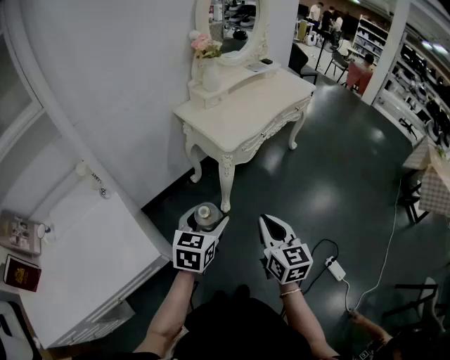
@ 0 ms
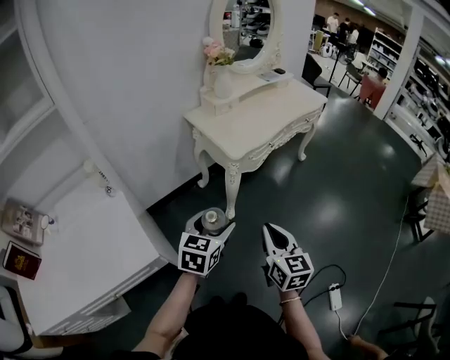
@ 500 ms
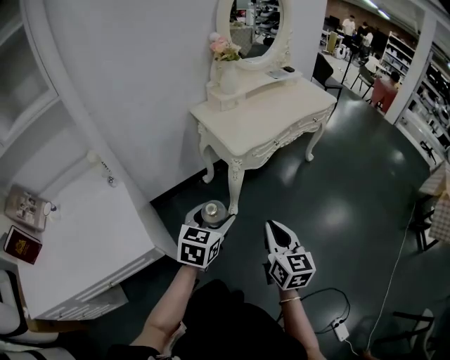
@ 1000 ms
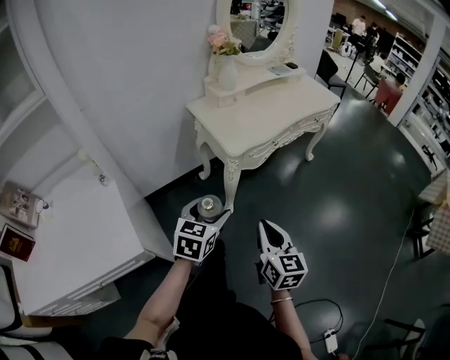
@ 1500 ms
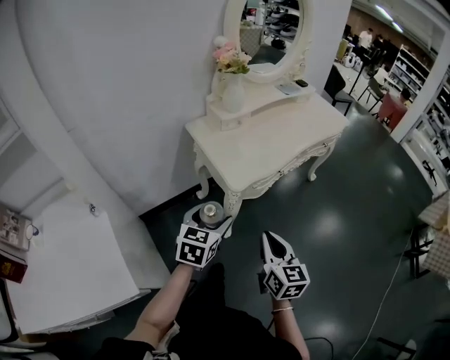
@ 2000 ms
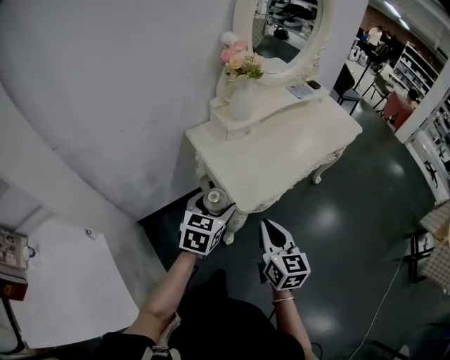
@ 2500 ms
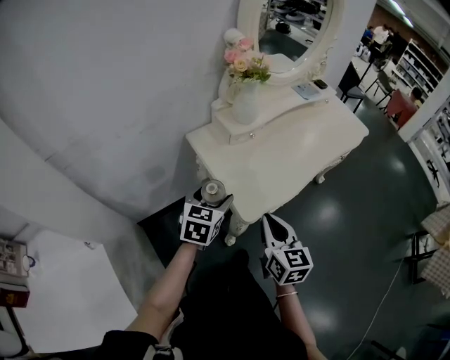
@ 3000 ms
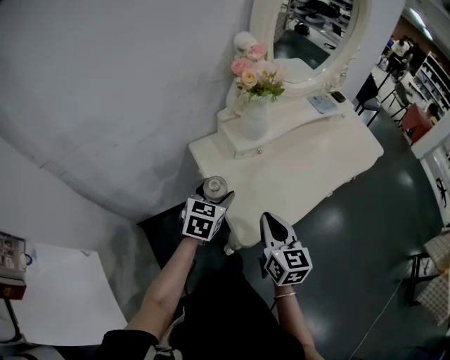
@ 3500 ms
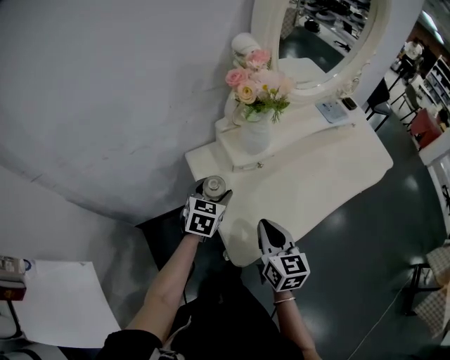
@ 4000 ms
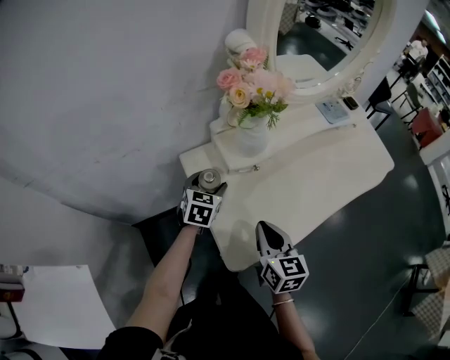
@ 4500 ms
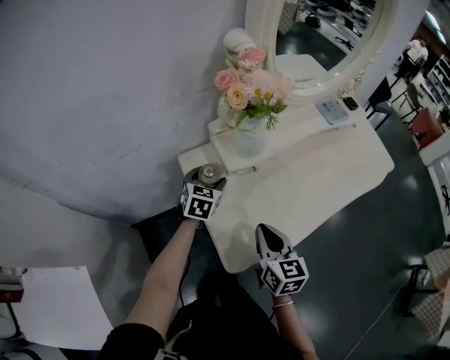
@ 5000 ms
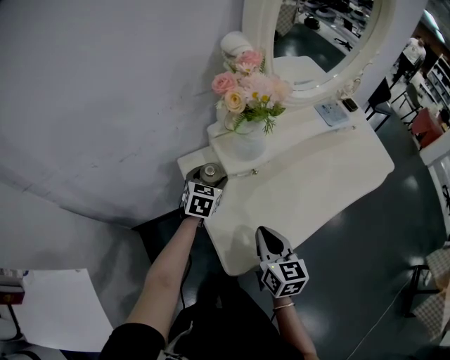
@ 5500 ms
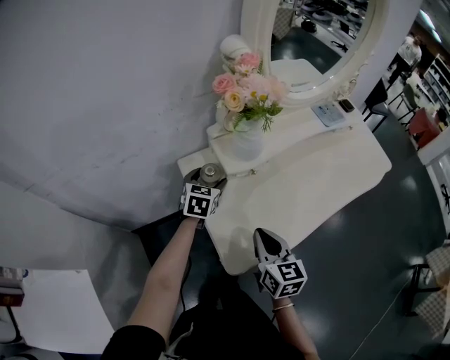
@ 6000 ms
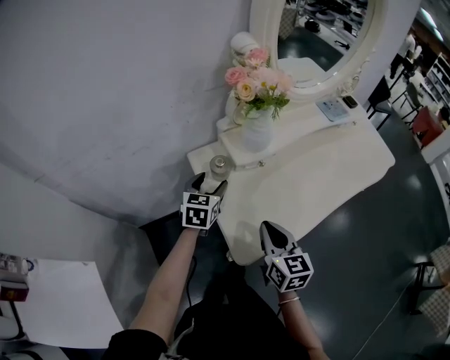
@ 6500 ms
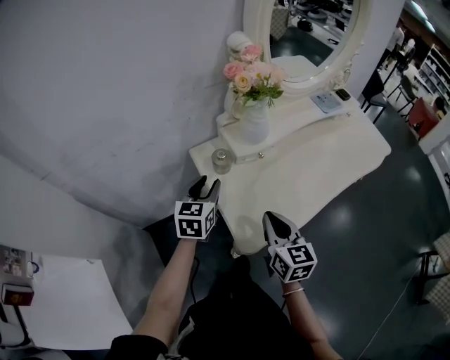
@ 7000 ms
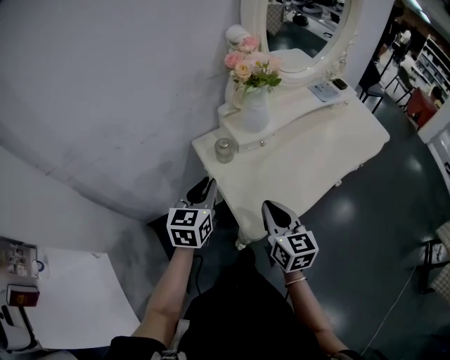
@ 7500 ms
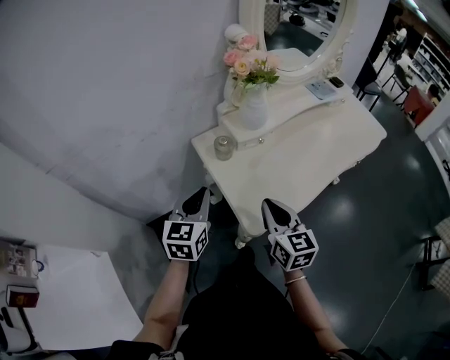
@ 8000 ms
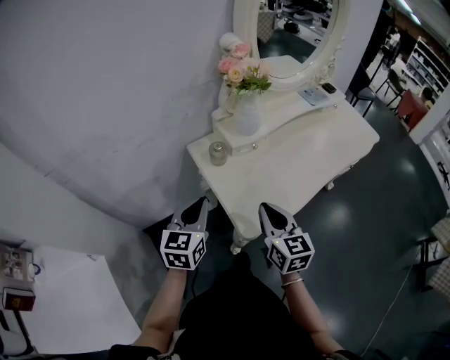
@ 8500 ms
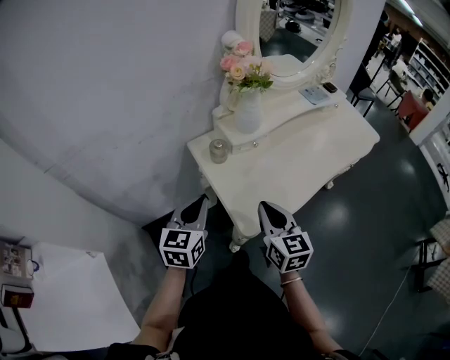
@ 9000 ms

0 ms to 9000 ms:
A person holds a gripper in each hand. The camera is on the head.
0 ms to 2000 ms: Both grippers travel together forward, about 20 cm.
2000 ms to 4500 ms: Both grippers move forward, roughly 40 cm.
4500 ms to 7000 ms: The left gripper shifts some 10 cm backward and upward, and closes its fingers.
7000 ms to 9000 ms: The left gripper is displaced backward by some 10 cm, and closes its fingers.

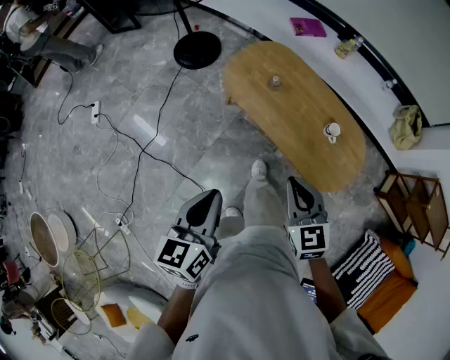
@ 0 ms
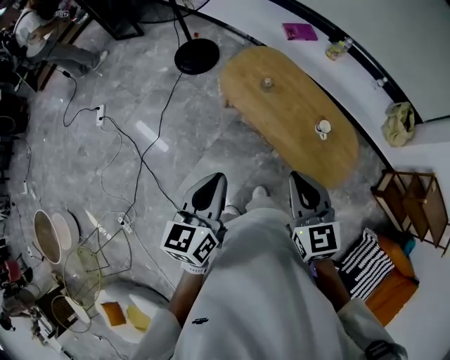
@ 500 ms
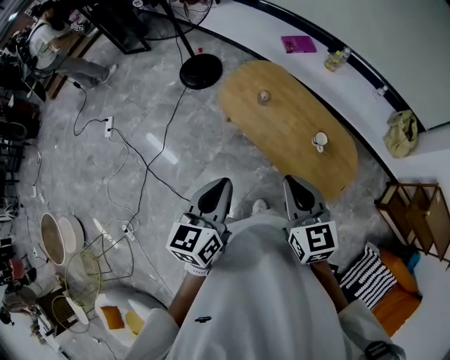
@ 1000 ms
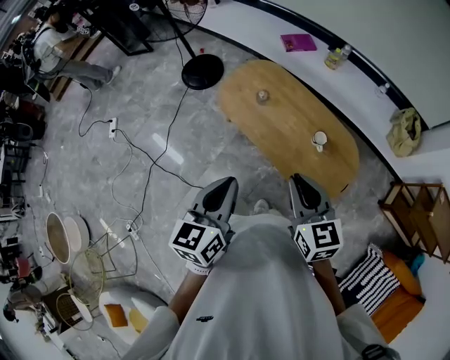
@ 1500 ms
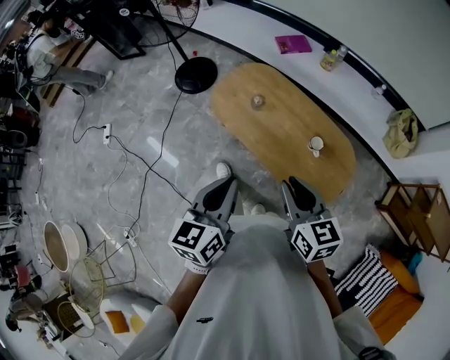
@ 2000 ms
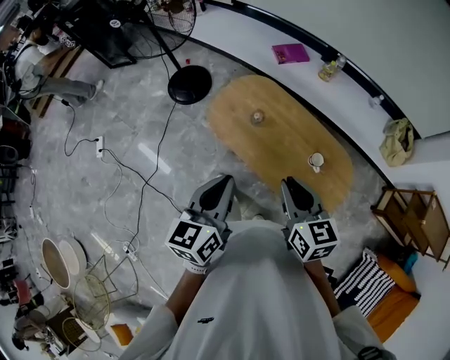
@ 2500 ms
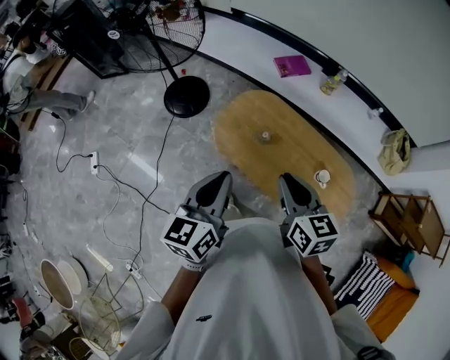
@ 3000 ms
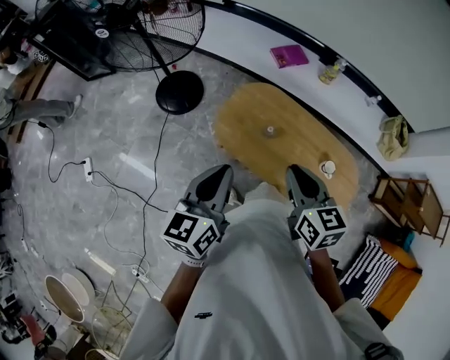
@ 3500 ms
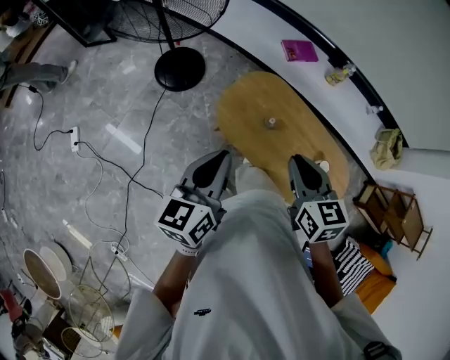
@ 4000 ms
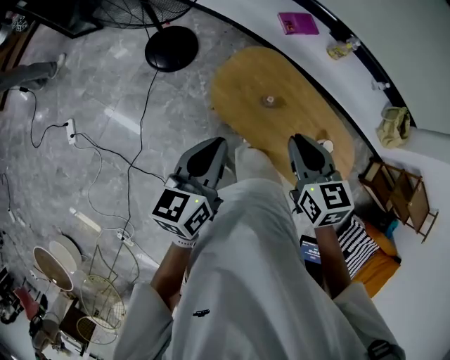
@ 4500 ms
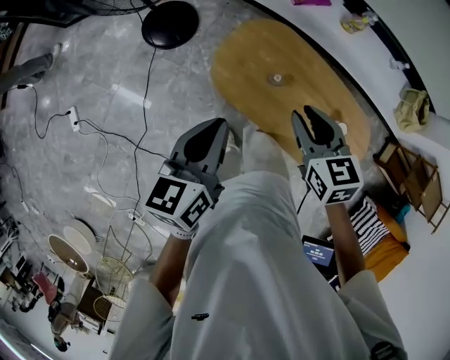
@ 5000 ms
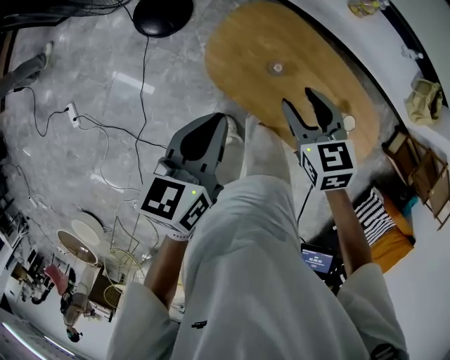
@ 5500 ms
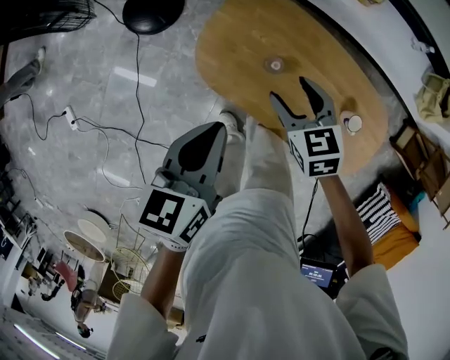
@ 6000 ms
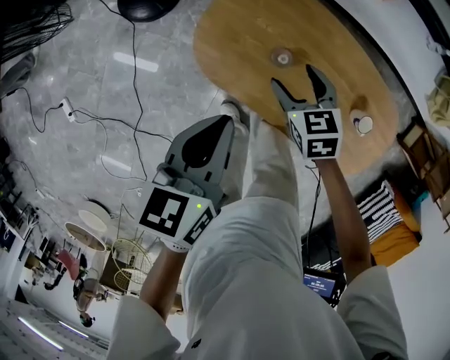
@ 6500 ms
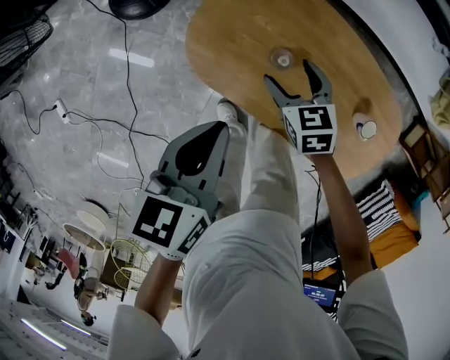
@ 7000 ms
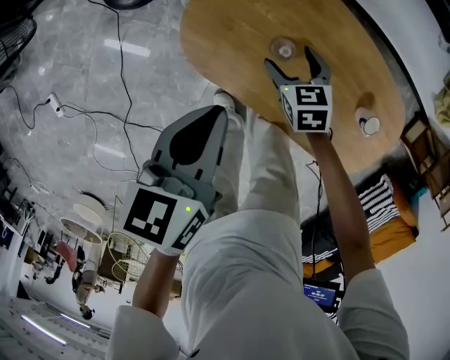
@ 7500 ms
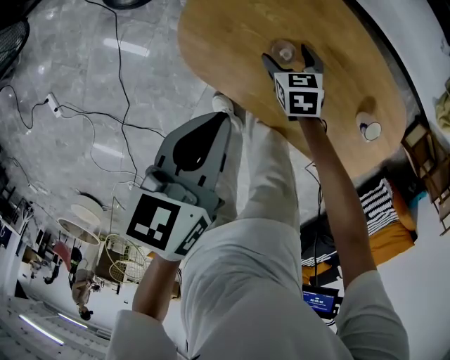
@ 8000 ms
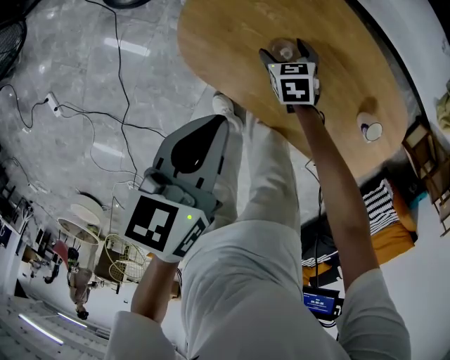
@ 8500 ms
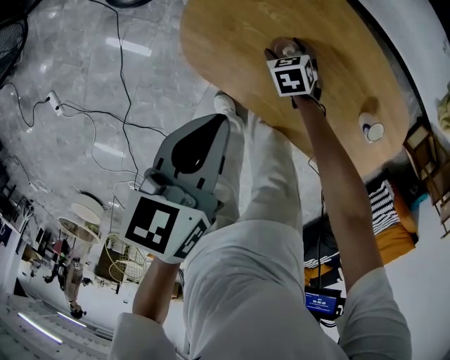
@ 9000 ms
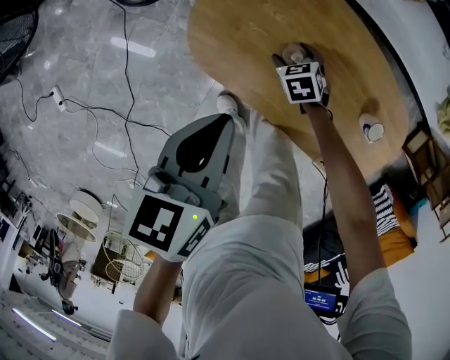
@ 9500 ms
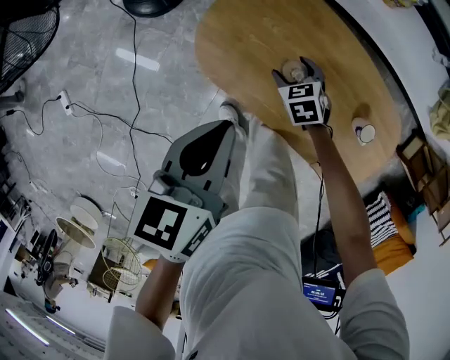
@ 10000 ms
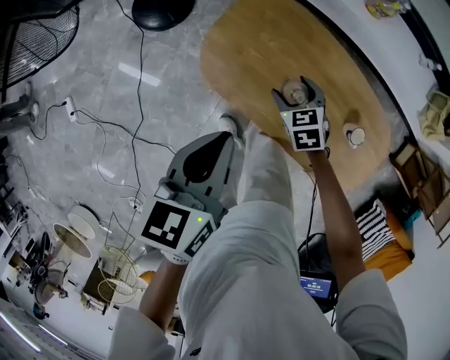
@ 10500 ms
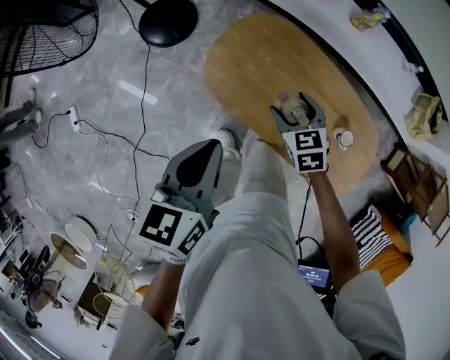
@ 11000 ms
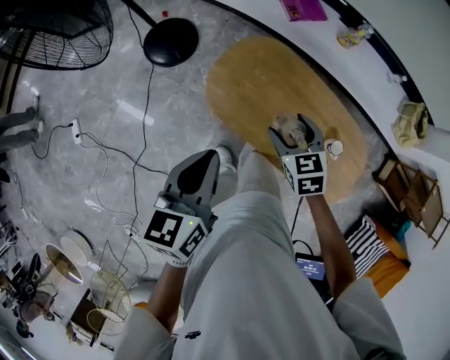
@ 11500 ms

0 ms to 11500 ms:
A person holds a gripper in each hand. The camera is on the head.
0 ms to 2000 ms: The right gripper goes approximately 10 cm to the right and upward, and changes its angle by roughly 20 degrees. Meanwhile the left gripper heads to the right, covering approximately 15 cm.
2000 ms to 4000 ms: Both grippers move forward and to the left, roughly 30 cm.
4000 ms to 6000 ms: The left gripper moves downward, forward and to the right, about 20 cm, and rotates roughly 30 degrees, while the right gripper is displaced downward and forward by roughly 25 cm, and opens.
6000 ms to 7500 ms: The right gripper shifts approximately 20 cm downward. The left gripper travels downward by roughly 10 cm.
7500 ms to 9500 ms: The right gripper moves downward, some 10 cm.
9500 ms to 11500 ms: The right gripper heads upward, covering approximately 35 cm, and changes its angle by approximately 20 degrees, while the left gripper heads upward and backward, covering some 20 cm.

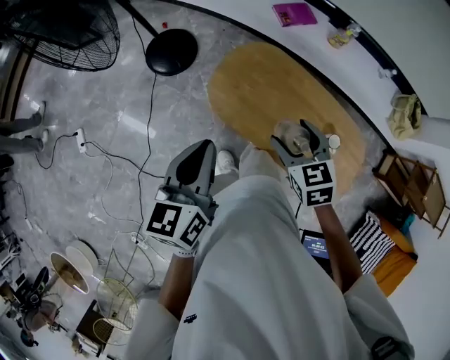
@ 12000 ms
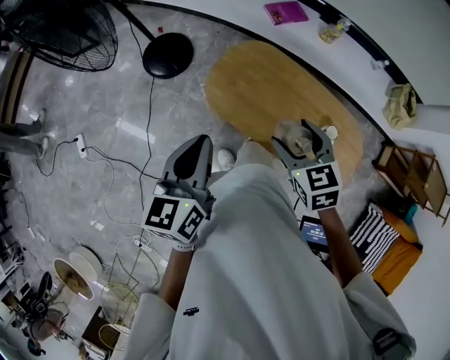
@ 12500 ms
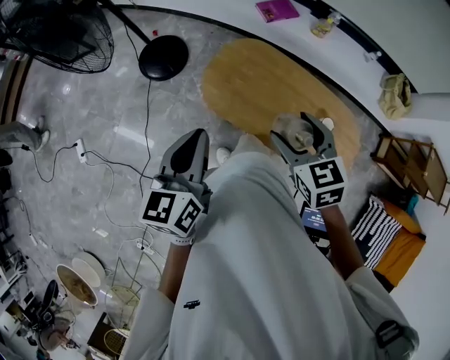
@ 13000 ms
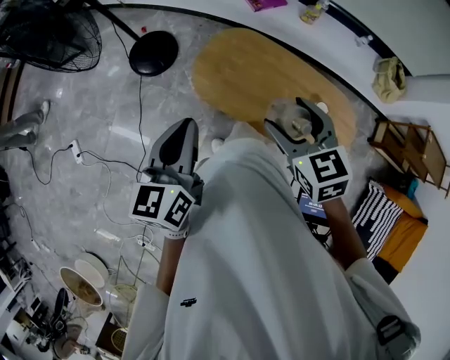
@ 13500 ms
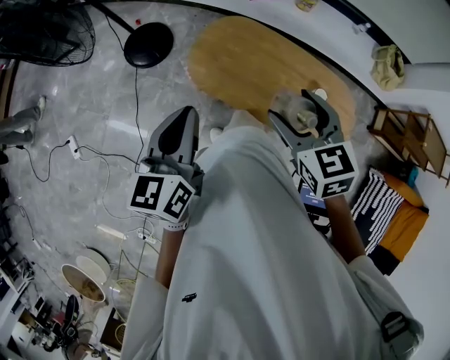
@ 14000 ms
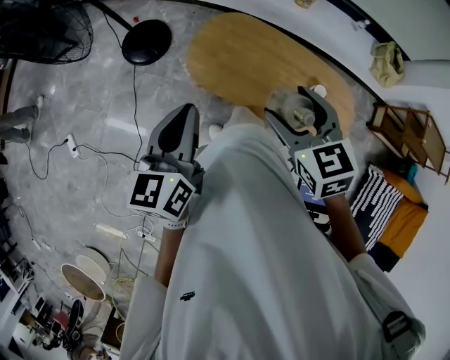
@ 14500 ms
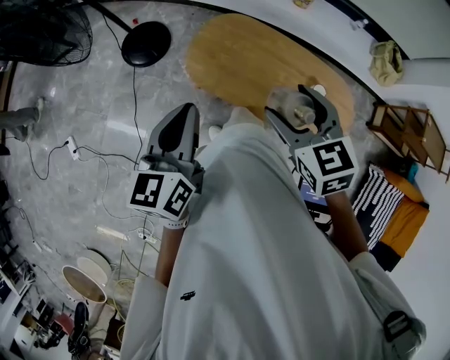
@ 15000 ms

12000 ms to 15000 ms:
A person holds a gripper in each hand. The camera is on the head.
12000 ms to 13500 ms: The left gripper changes place by approximately 5 cm. Meanwhile the right gripper goes roughly 10 cm upward and backward.
13500 ms to 15000 ms: The grippers stay close to where they were, moving slightly.

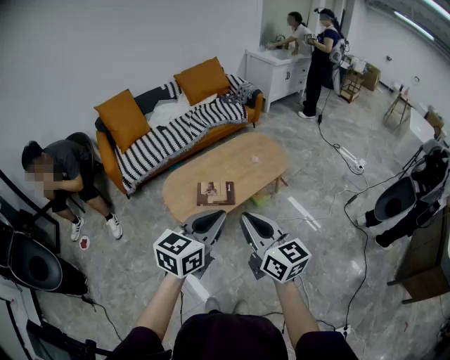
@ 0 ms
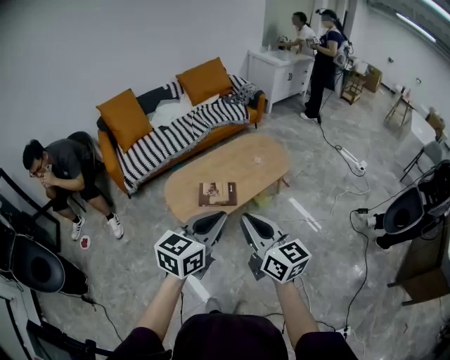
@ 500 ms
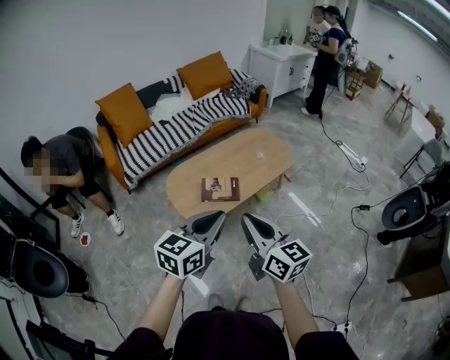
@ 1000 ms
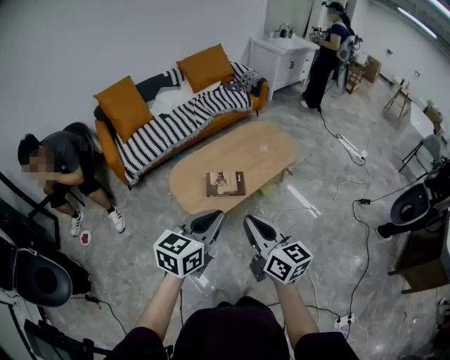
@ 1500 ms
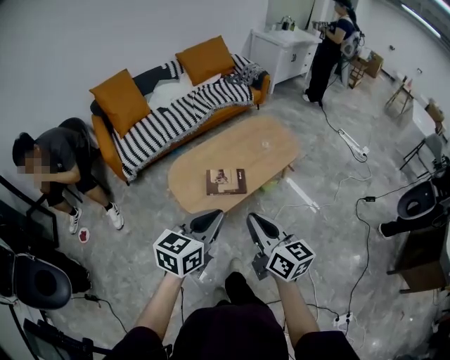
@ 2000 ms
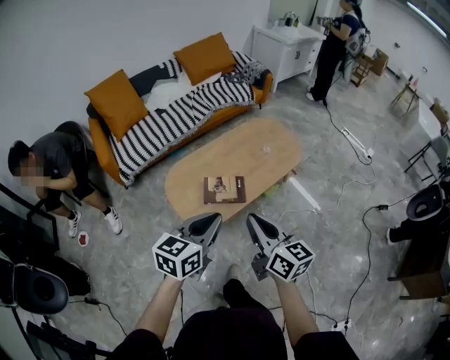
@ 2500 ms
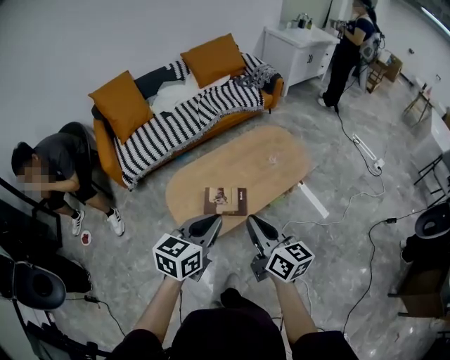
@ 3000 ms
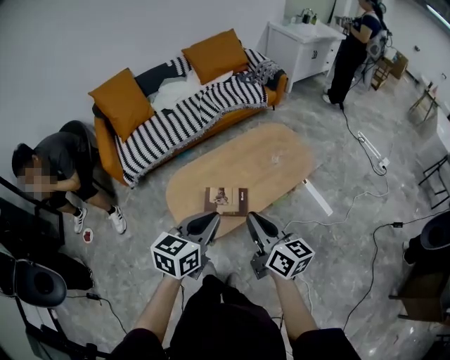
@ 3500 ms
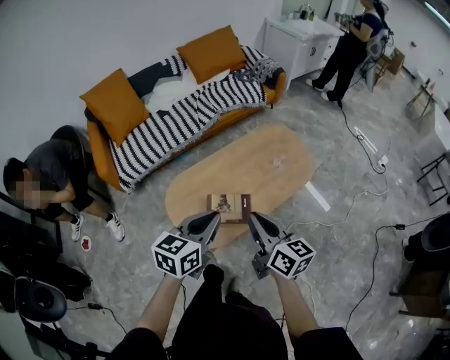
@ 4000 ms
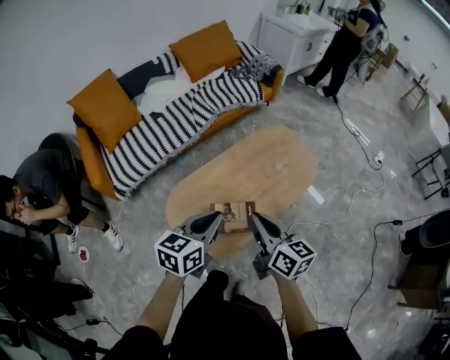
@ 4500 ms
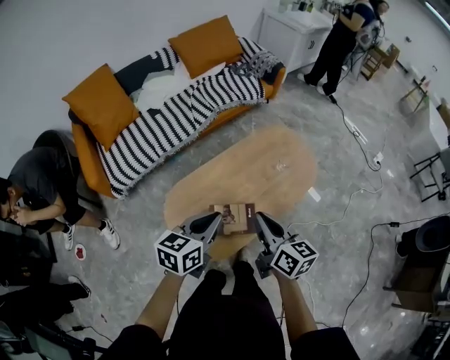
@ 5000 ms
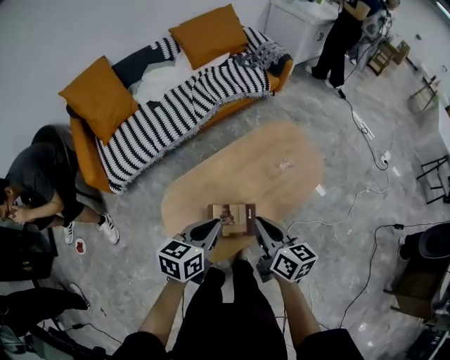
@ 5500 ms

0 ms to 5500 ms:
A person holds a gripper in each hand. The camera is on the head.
0 ms to 2000 ms: Both grippers move to the left and downward, approximately 10 cm.
2000 ms to 3500 ms: The two grippers go about 20 cm forward.
3500 ms to 5500 ms: The right gripper is displaced forward and downward by approximately 25 cm. Meanwhile the left gripper moves forward, downward and to the left, some 25 cm.
